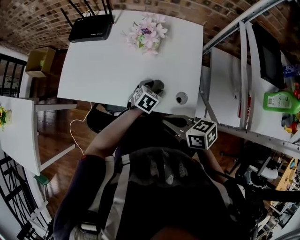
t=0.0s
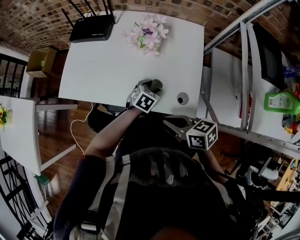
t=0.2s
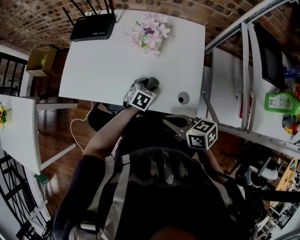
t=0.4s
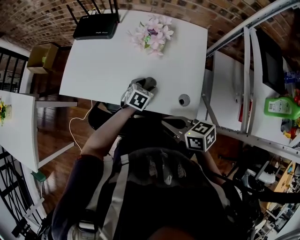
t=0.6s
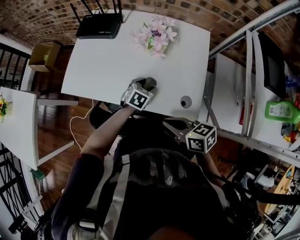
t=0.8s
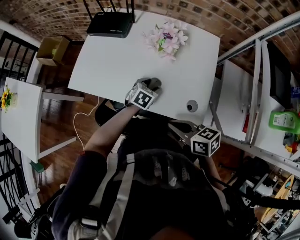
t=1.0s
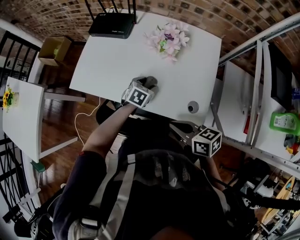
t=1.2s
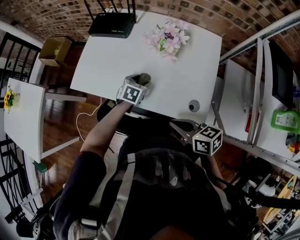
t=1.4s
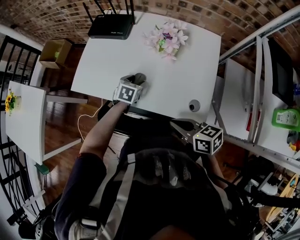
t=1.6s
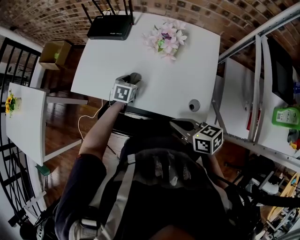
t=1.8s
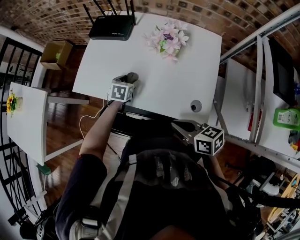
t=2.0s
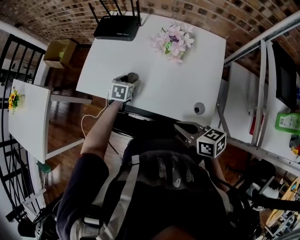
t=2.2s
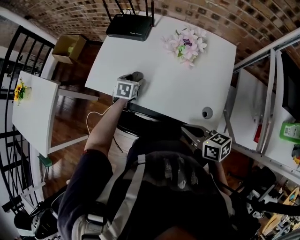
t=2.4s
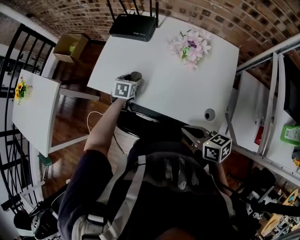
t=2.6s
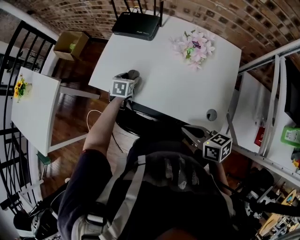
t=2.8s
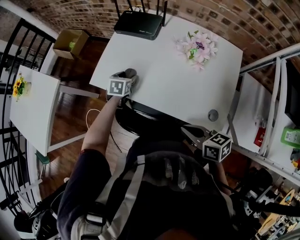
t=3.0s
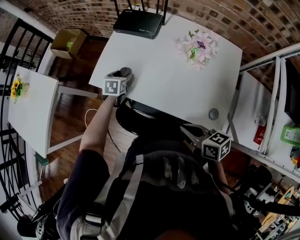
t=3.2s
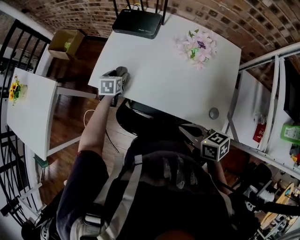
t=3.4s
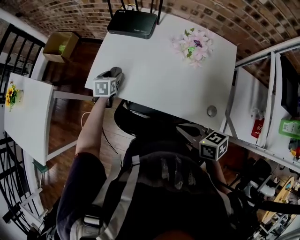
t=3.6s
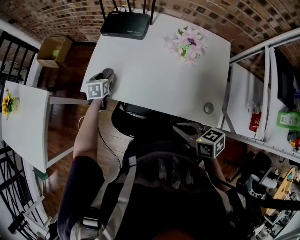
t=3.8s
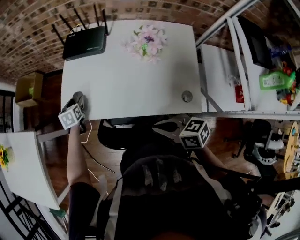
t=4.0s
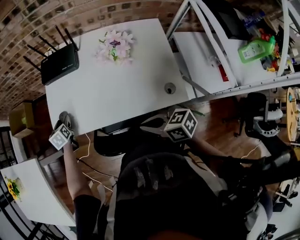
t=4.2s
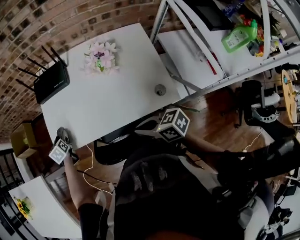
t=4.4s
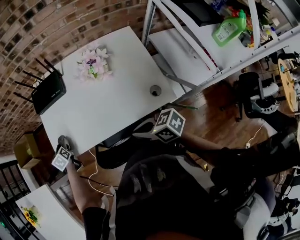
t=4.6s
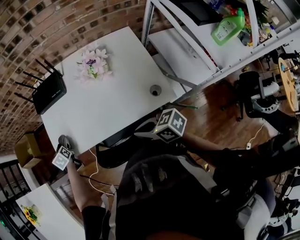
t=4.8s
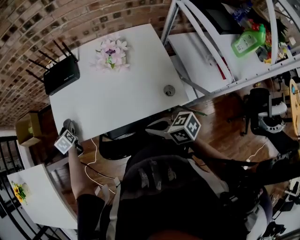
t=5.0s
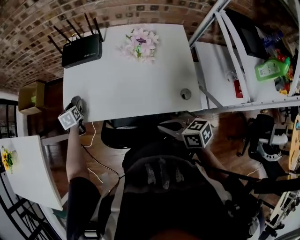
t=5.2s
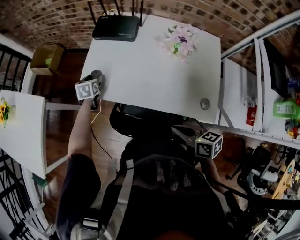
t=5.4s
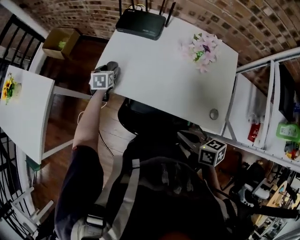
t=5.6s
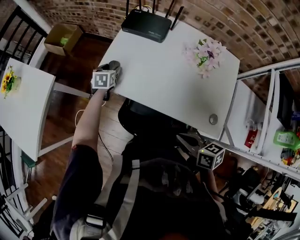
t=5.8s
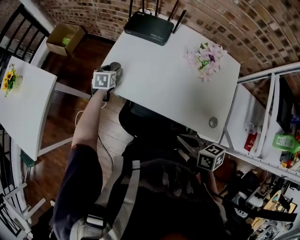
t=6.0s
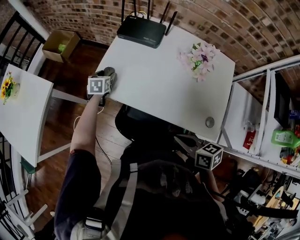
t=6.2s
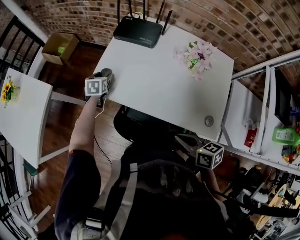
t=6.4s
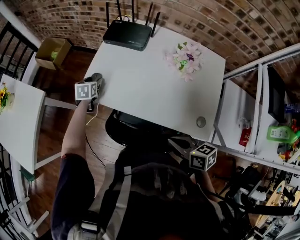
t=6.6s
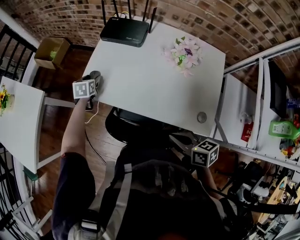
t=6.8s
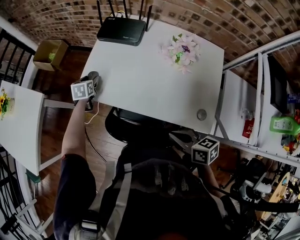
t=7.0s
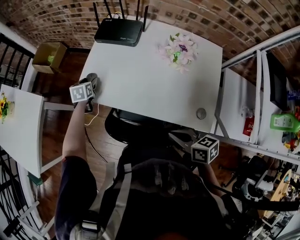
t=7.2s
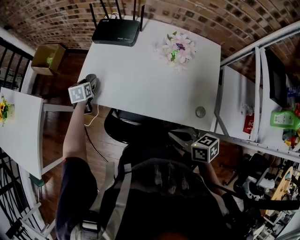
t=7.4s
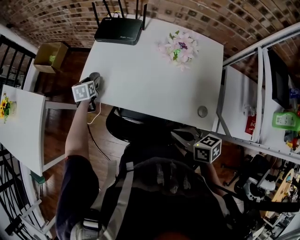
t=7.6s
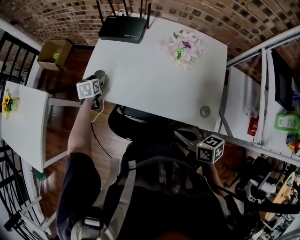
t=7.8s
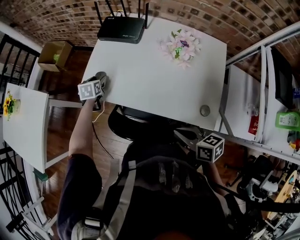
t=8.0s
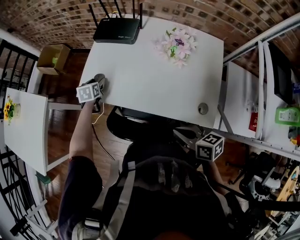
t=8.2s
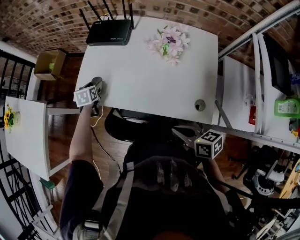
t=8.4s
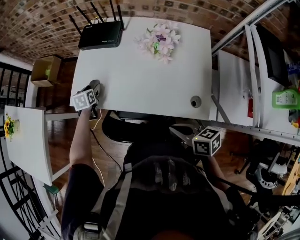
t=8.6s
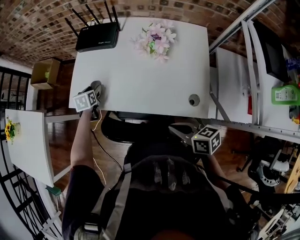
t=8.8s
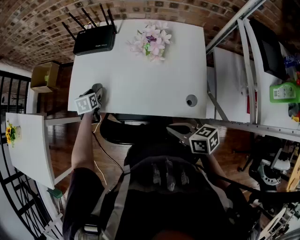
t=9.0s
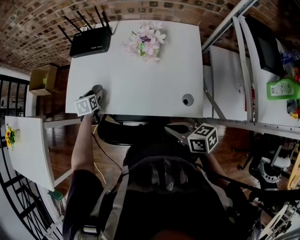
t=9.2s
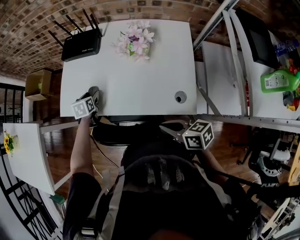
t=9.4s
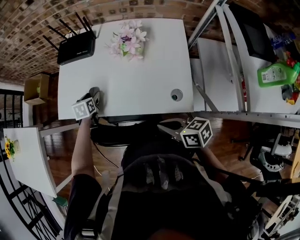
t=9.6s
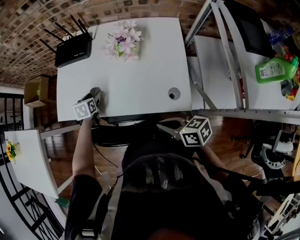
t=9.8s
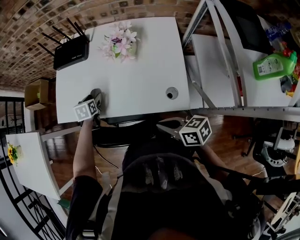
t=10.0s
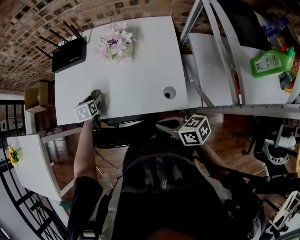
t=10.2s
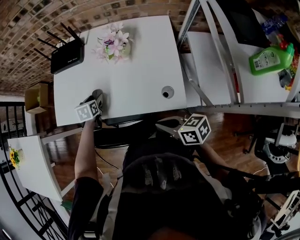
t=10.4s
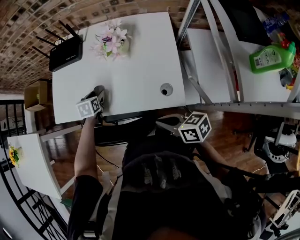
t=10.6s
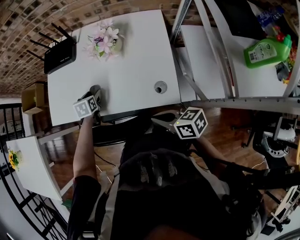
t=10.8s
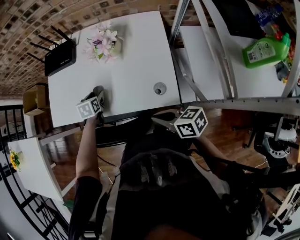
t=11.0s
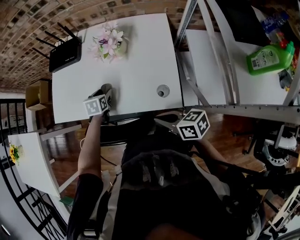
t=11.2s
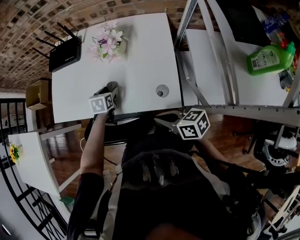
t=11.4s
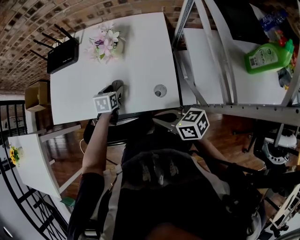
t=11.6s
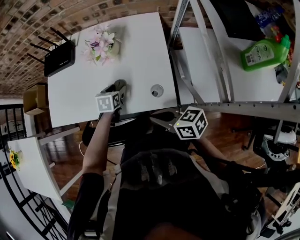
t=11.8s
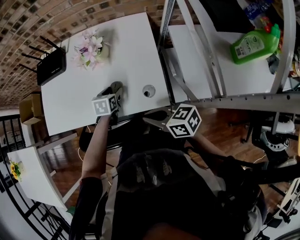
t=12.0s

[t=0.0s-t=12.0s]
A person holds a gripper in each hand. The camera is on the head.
t=0.0s to t=1.6s: The left gripper is displaced to the left and forward by roughly 20 cm, and rotates approximately 20 degrees.
t=1.6s to t=3.0s: The left gripper travels to the left and forward by some 20 cm, while the right gripper moves about 5 cm.
t=3.0s to t=4.4s: The left gripper goes roughly 15 cm to the left and forward.
t=4.4s to t=6.0s: The grippers move only a little.
t=6.0s to t=7.6s: The right gripper shifts by some 5 cm.
t=7.6s to t=9.0s: The left gripper goes about 10 cm to the right and backward.
t=9.0s to t=10.4s: The right gripper changes place by approximately 5 cm; the left gripper heads to the right and backward, covering approximately 15 cm.
t=10.4s to t=12.0s: The left gripper goes about 20 cm to the right and backward.

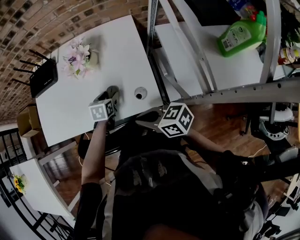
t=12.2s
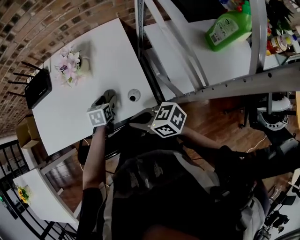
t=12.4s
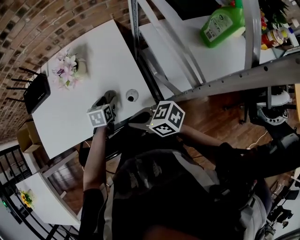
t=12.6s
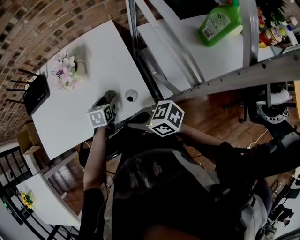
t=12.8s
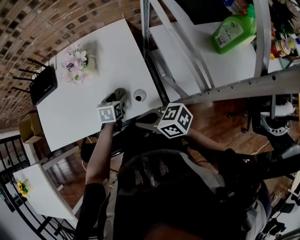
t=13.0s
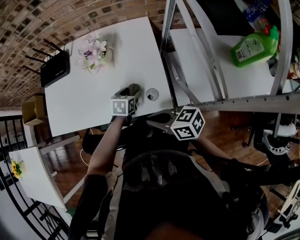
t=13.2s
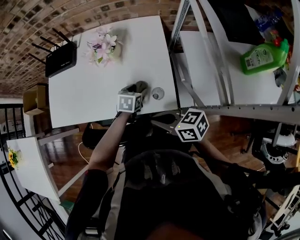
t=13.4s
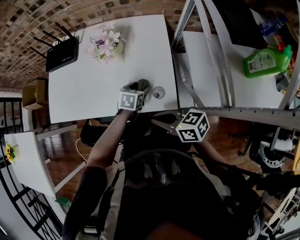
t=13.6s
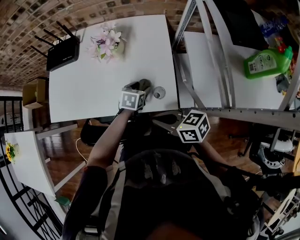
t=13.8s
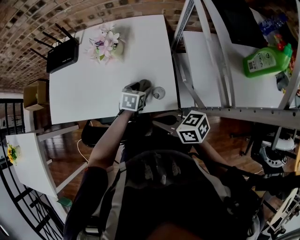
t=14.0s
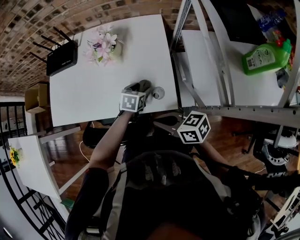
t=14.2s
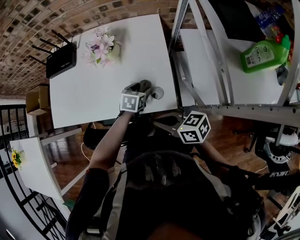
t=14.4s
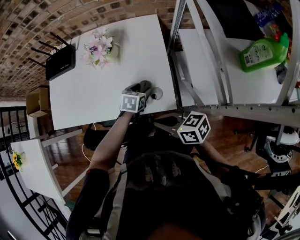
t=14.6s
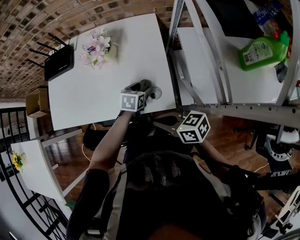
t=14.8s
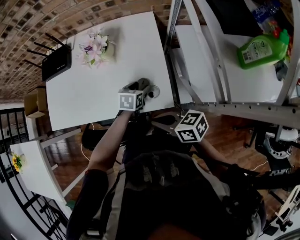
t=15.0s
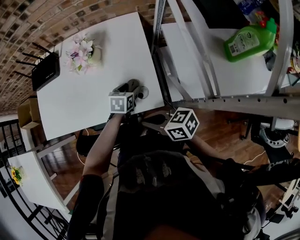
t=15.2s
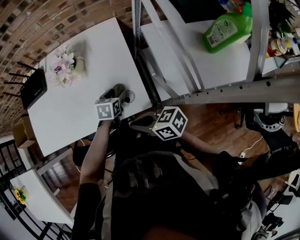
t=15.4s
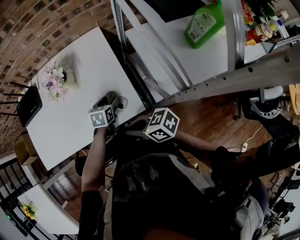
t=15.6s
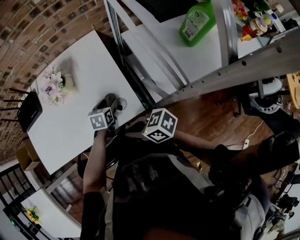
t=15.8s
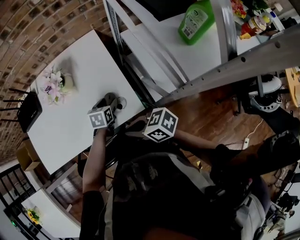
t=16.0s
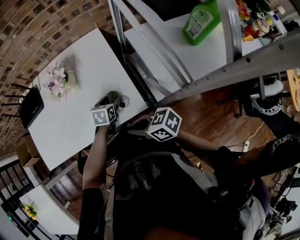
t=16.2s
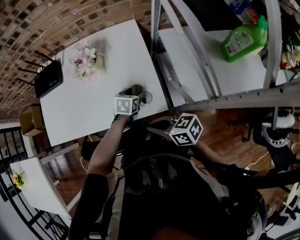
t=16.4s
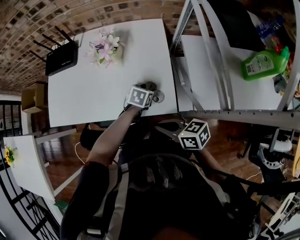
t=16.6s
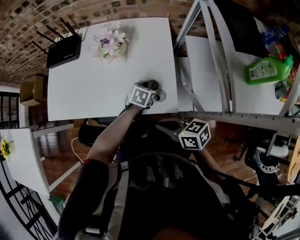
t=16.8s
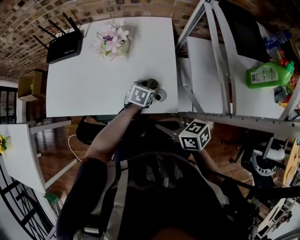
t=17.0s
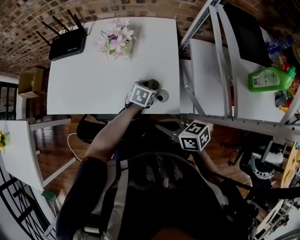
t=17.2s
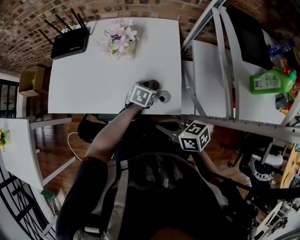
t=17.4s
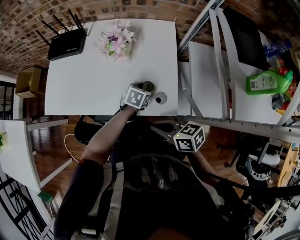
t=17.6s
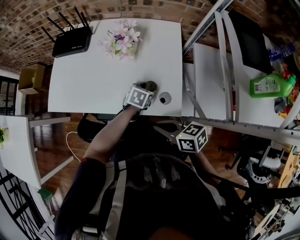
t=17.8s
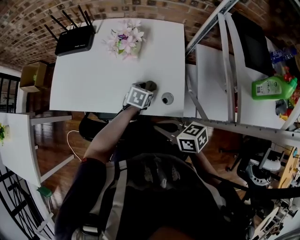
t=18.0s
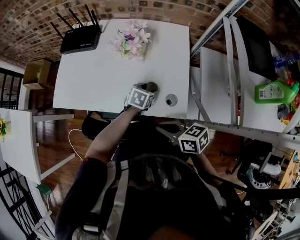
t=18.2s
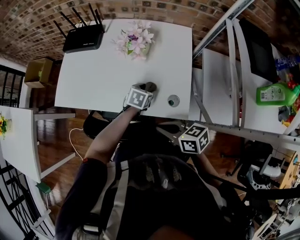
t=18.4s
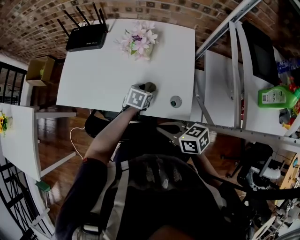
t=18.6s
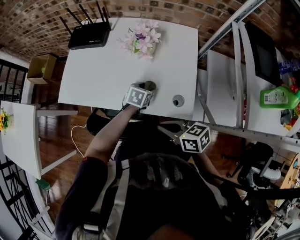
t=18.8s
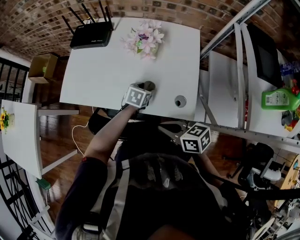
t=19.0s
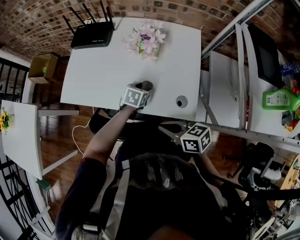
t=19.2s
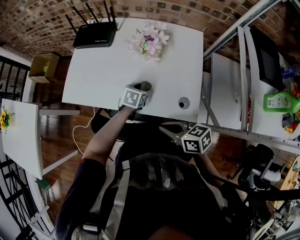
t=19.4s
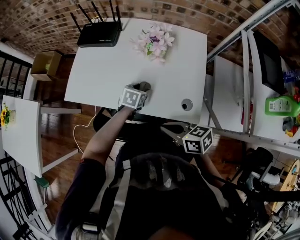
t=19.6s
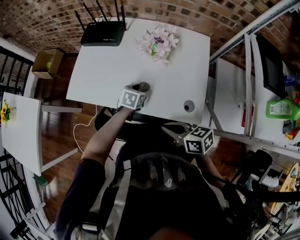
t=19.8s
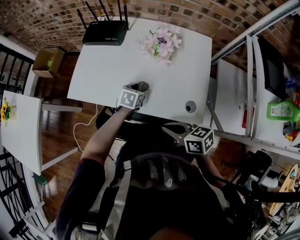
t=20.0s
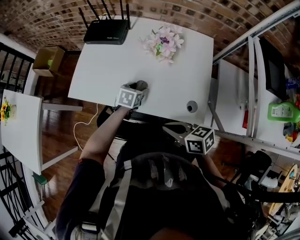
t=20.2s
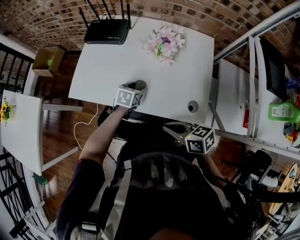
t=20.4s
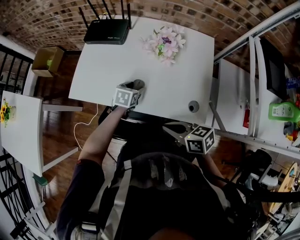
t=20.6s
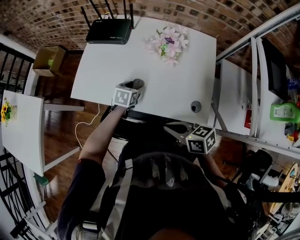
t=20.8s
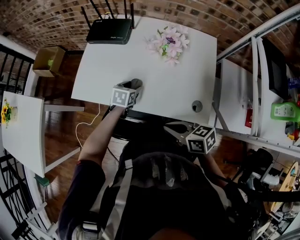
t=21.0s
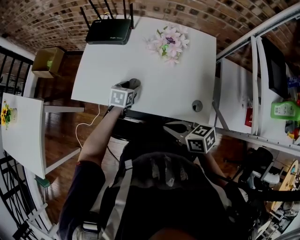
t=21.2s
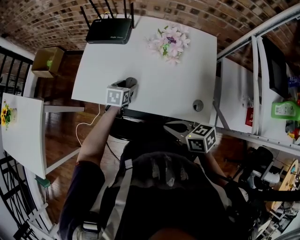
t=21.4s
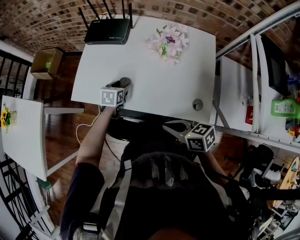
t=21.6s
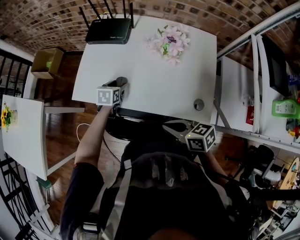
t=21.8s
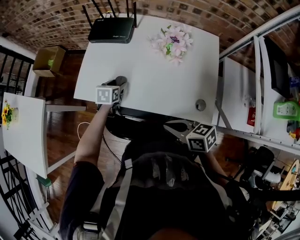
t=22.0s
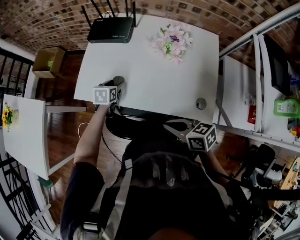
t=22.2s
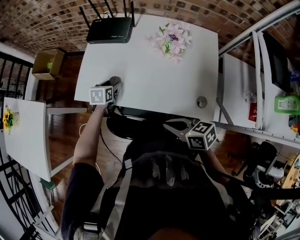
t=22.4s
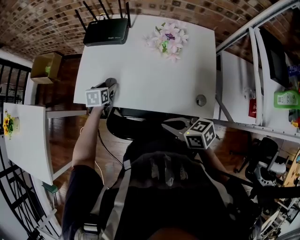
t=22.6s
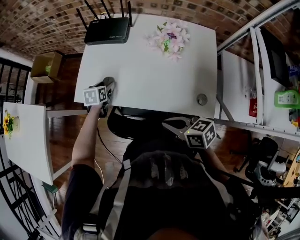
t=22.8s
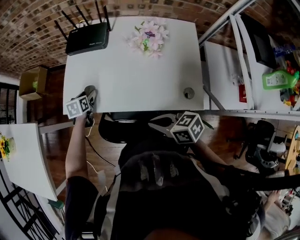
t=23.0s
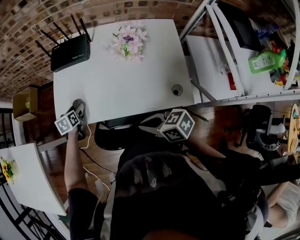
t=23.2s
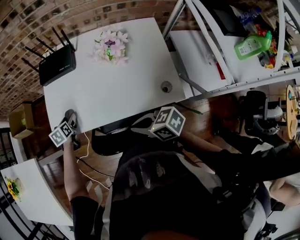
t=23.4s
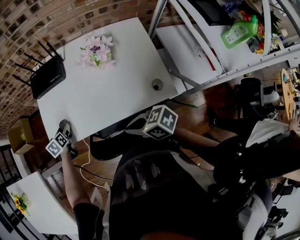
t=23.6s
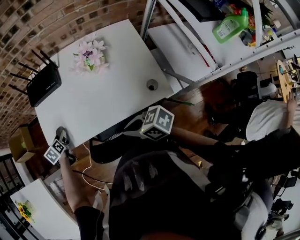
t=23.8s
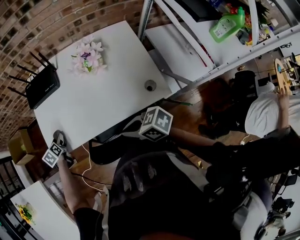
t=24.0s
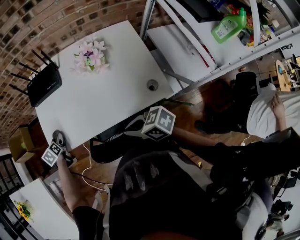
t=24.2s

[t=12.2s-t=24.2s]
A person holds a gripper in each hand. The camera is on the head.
t=12.2s to t=13.8s: The left gripper moves to the right, about 5 cm.
t=13.8s to t=16.6s: The grippers move only a little.
t=16.6s to t=18.2s: The left gripper heads to the left, covering about 10 cm; the right gripper moves to the left, roughly 5 cm.
t=18.2s to t=19.8s: The left gripper shifts roughly 15 cm to the left. The right gripper goes some 5 cm to the left.
t=19.8s to t=21.2s: The left gripper is displaced to the left by some 10 cm.
t=21.2s to t=22.6s: The left gripper moves to the left and forward, about 15 cm.
t=22.6s to t=24.2s: The left gripper heads to the left and forward, covering roughly 15 cm.
